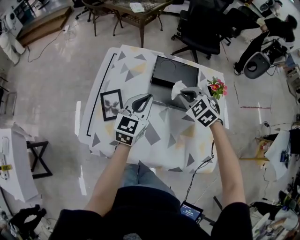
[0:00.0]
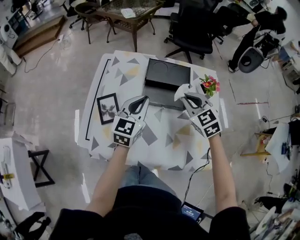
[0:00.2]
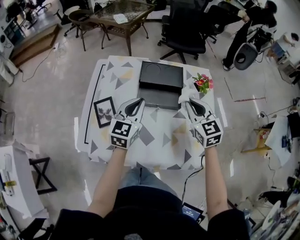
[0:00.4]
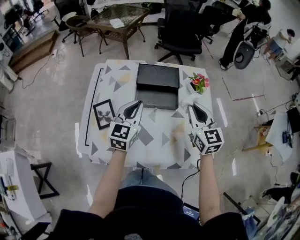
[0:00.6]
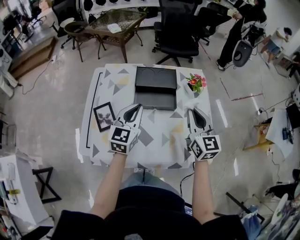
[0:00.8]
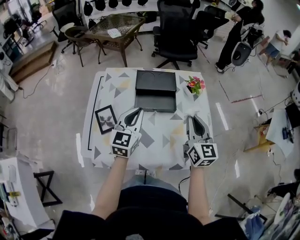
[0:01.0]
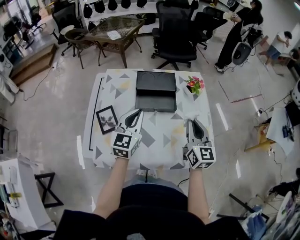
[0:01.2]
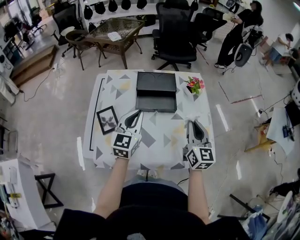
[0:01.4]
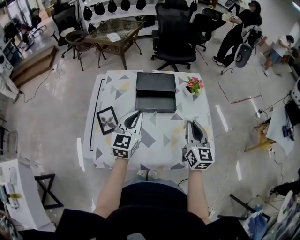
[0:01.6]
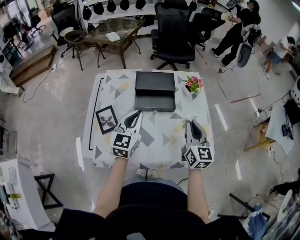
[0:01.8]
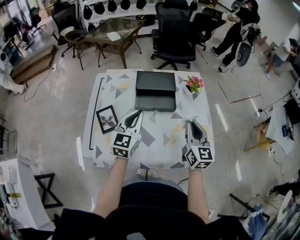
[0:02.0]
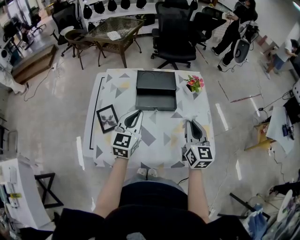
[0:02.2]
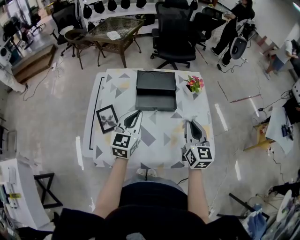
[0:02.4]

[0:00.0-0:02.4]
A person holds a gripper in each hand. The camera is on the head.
0:00.0 to 0:01.2: The right gripper travels backward, to the right and upward by approximately 20 cm, and tips its fingers upward by roughly 40 degrees. The left gripper goes about 5 cm backward.
0:01.2 to 0:02.4: The grippers stay close to where they were, moving slightly.

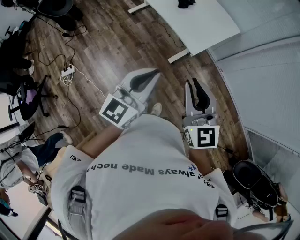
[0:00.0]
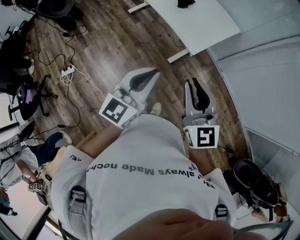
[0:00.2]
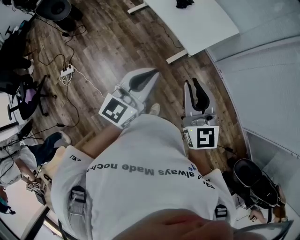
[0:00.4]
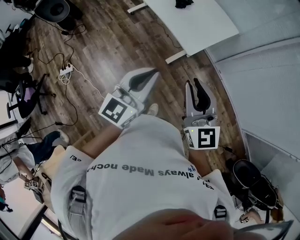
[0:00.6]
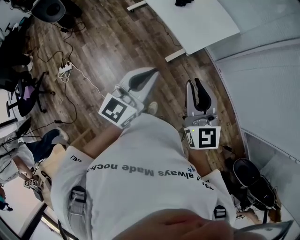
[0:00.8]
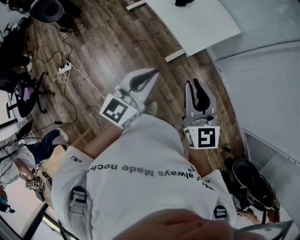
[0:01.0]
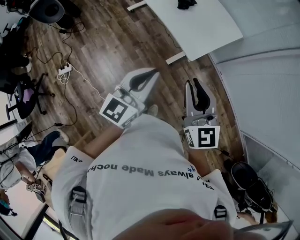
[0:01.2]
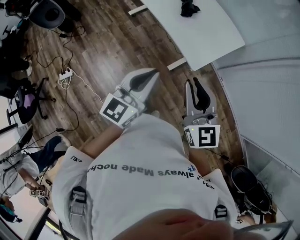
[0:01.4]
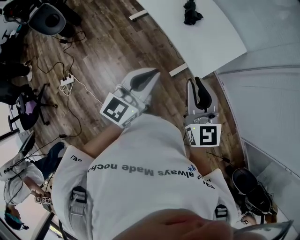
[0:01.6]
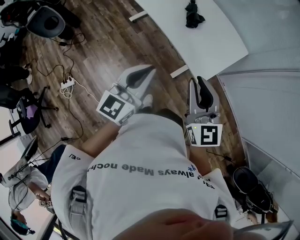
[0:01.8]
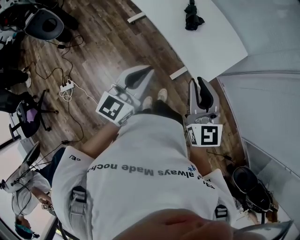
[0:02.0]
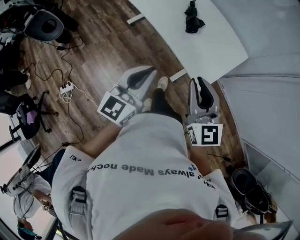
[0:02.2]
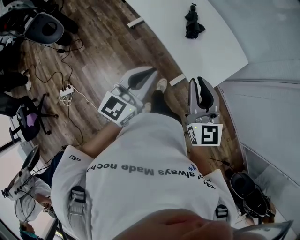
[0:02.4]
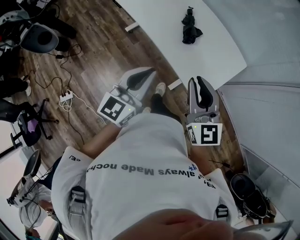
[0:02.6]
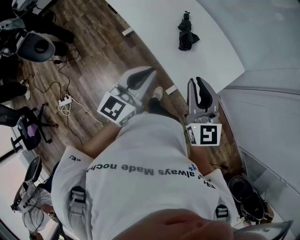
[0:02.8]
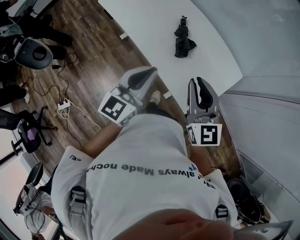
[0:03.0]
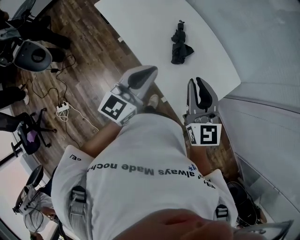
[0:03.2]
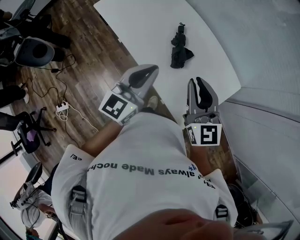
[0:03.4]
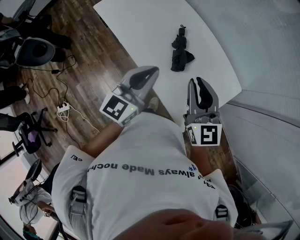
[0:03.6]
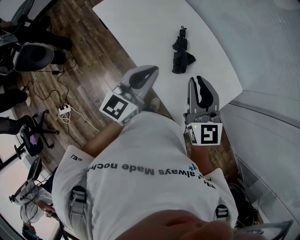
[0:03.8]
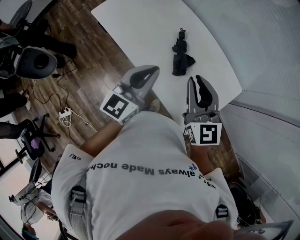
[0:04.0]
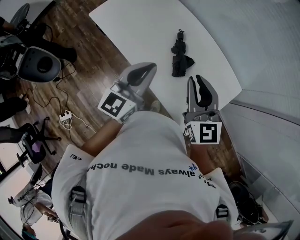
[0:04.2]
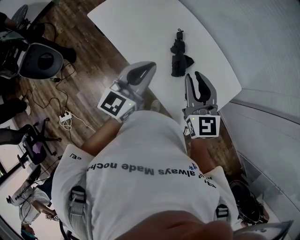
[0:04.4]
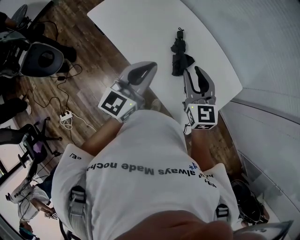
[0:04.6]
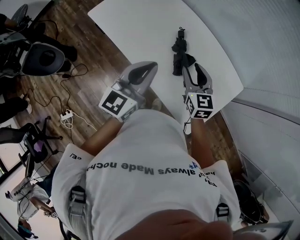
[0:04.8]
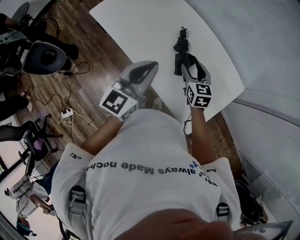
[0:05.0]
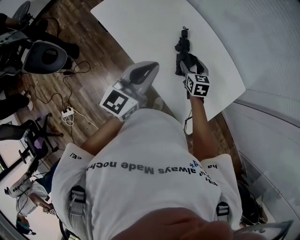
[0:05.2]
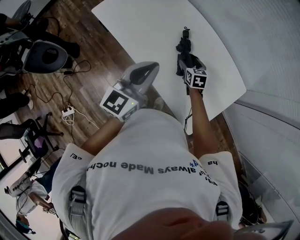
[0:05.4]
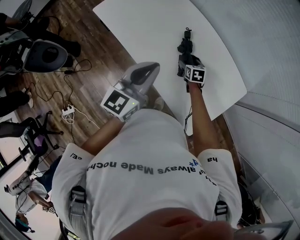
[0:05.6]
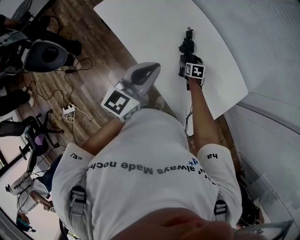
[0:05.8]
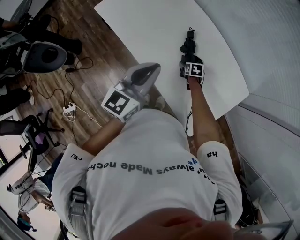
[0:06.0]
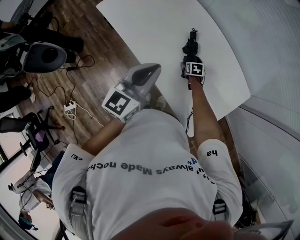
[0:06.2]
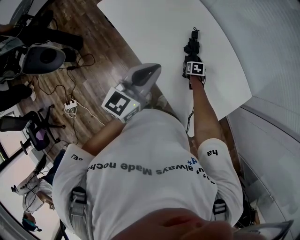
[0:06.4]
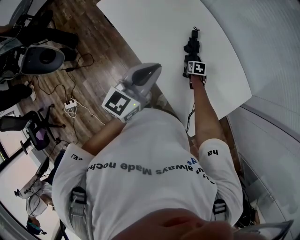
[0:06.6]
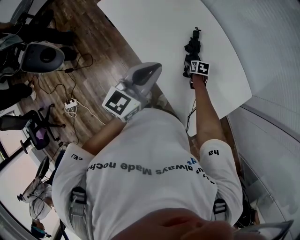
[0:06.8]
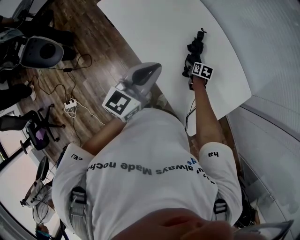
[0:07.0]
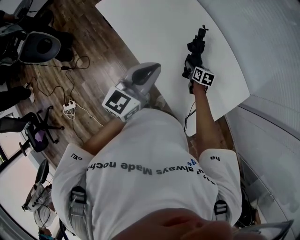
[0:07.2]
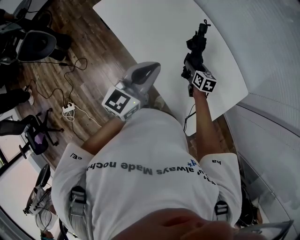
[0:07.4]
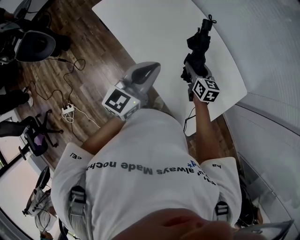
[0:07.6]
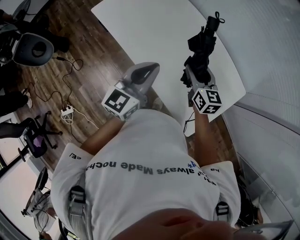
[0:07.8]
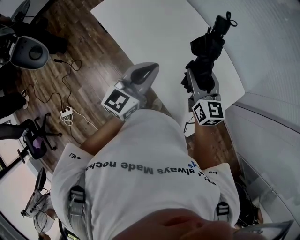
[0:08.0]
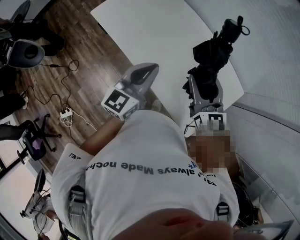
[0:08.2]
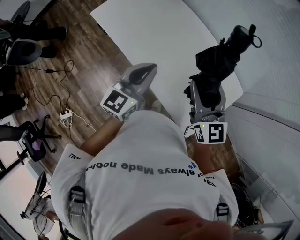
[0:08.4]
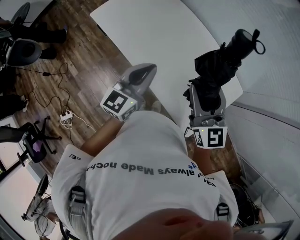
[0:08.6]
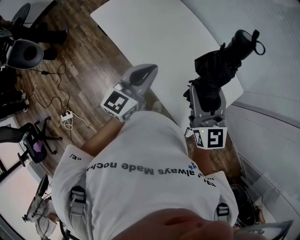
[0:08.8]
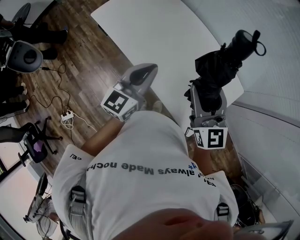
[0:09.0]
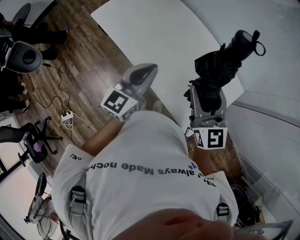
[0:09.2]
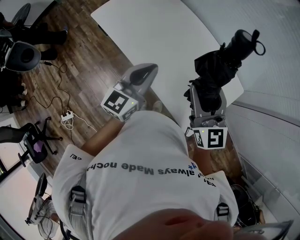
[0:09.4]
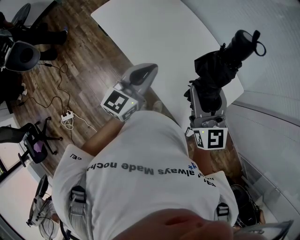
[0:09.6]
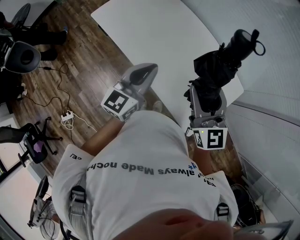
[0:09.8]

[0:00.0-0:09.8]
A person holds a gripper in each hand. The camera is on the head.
0:00.0 to 0:01.4: The two grippers go approximately 15 cm forward.
0:01.4 to 0:02.8: Both grippers move forward, roughly 30 cm.
0:02.8 to 0:04.2: The grippers both shift forward by roughly 25 cm.
0:04.2 to 0:05.6: The right gripper travels downward by about 35 cm, angles its fingers downward, by some 40 degrees, and opens up.
0:05.6 to 0:07.0: The right gripper heads downward, covering about 10 cm.
0:07.0 to 0:08.4: The right gripper goes approximately 40 cm upward, and points its fingers about 50 degrees further upward.
0:08.4 to 0:09.8: The right gripper shifts by some 5 cm.

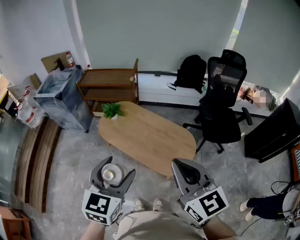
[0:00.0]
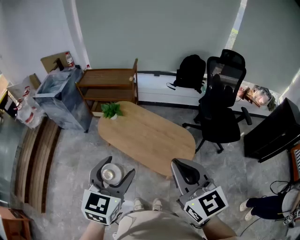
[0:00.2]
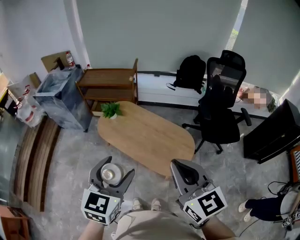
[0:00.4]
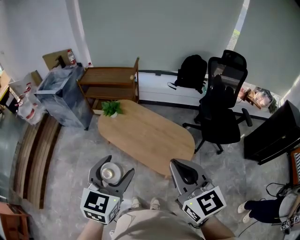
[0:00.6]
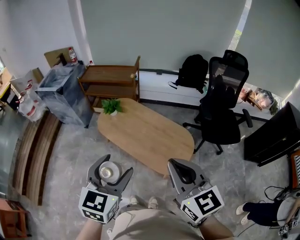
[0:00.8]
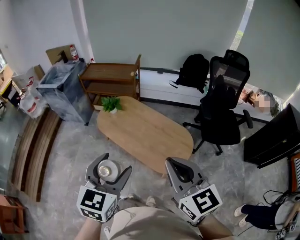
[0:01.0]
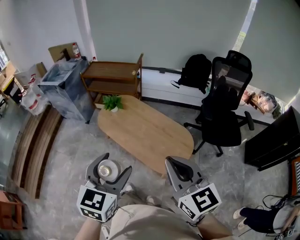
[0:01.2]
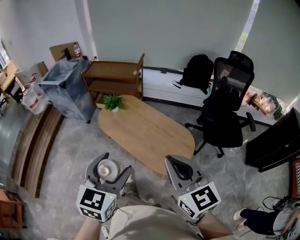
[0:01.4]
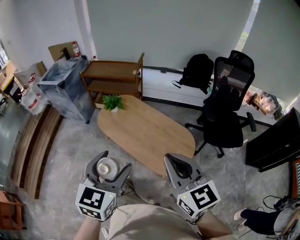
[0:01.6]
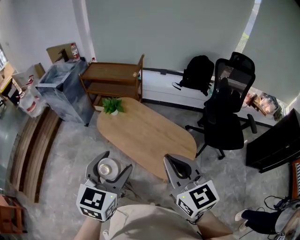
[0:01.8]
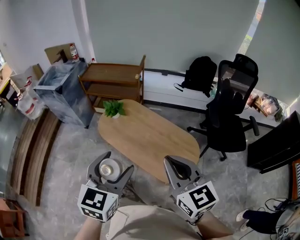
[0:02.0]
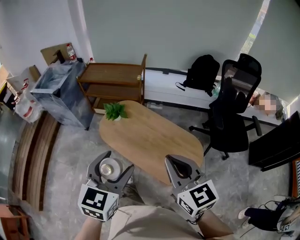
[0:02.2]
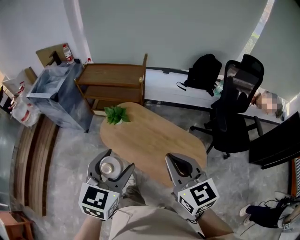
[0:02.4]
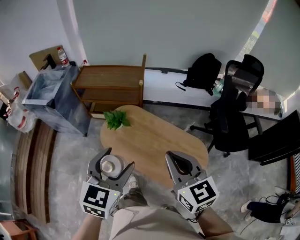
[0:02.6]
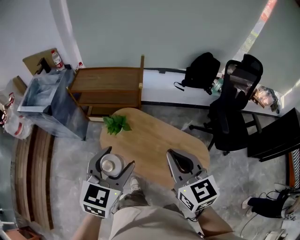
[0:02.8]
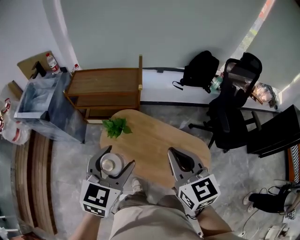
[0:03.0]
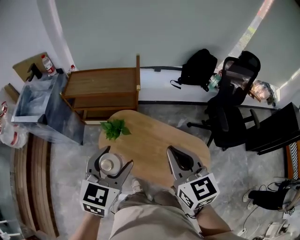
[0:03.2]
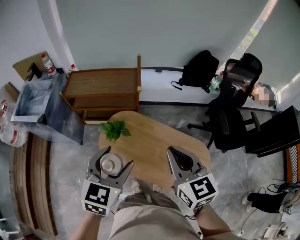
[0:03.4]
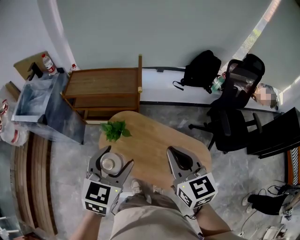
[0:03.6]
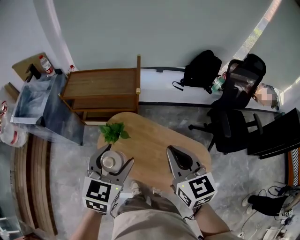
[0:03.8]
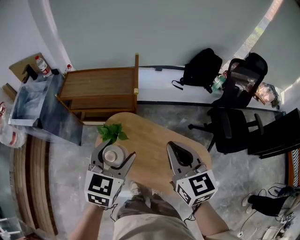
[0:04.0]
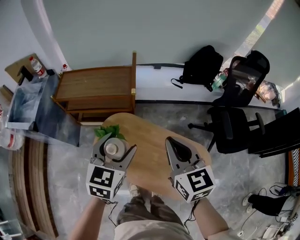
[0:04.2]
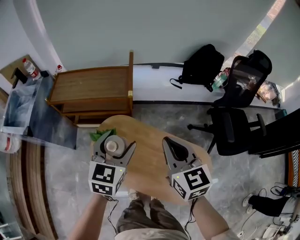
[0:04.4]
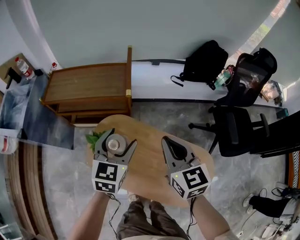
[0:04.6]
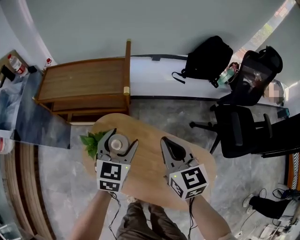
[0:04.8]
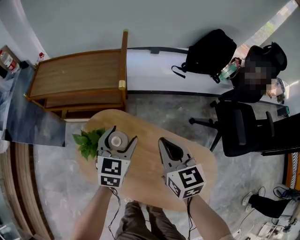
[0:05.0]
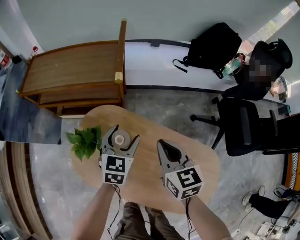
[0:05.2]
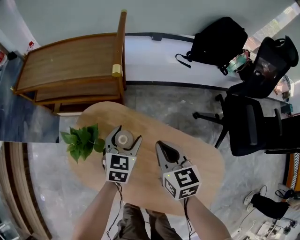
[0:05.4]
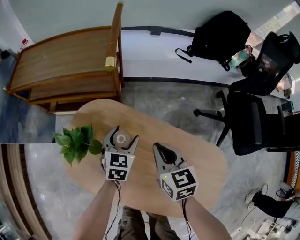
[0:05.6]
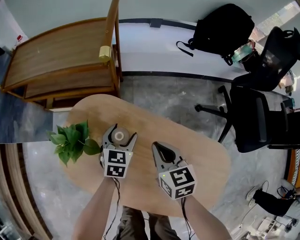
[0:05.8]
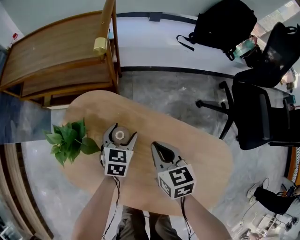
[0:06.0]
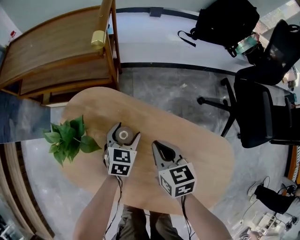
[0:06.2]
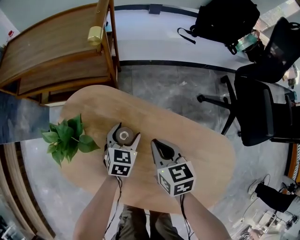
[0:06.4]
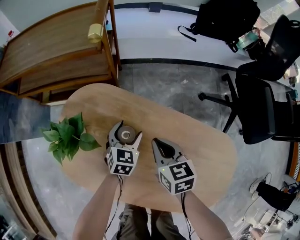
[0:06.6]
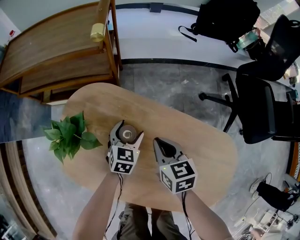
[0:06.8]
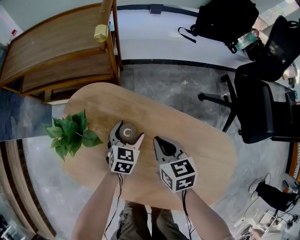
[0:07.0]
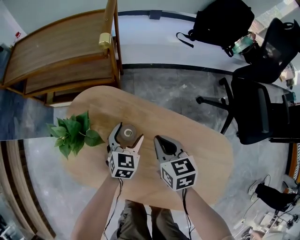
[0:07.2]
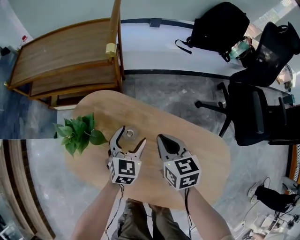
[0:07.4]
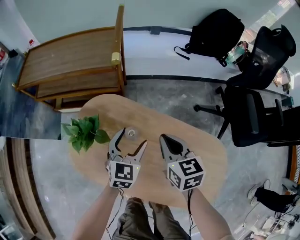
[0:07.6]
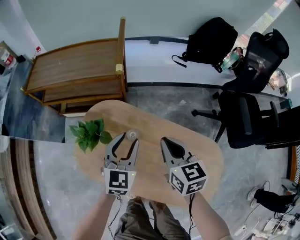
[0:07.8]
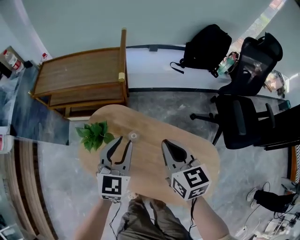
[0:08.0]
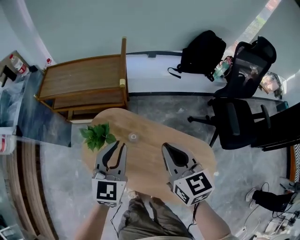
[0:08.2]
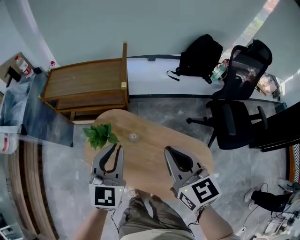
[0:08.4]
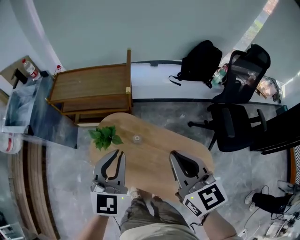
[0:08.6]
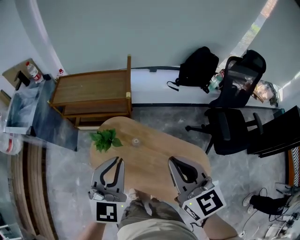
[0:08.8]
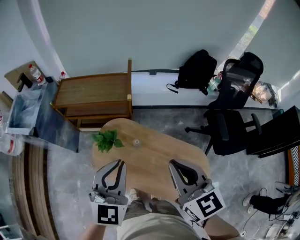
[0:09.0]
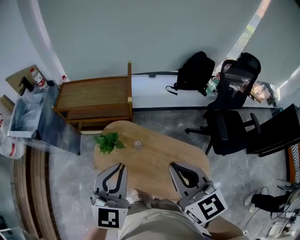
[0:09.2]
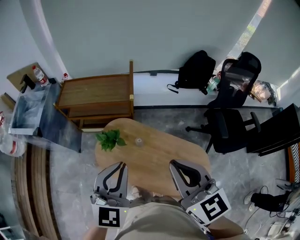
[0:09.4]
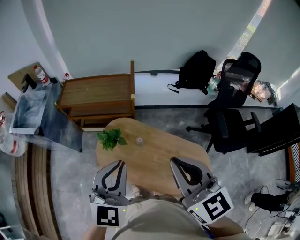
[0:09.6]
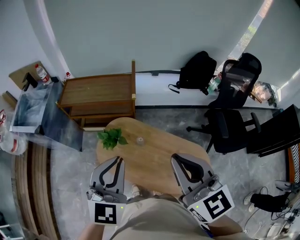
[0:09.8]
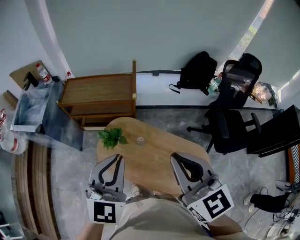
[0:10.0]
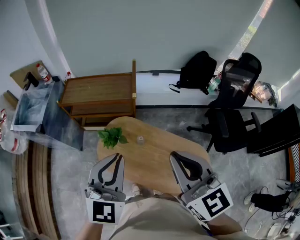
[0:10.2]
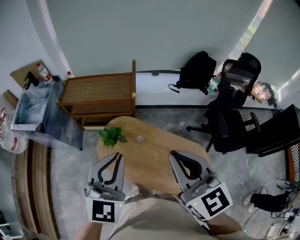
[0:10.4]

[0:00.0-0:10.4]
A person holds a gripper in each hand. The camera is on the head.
0:00.0 to 0:01.4: The right gripper moves about 5 cm; the left gripper shifts by roughly 5 cm.
0:01.4 to 0:03.0: The two grippers travel together, forward and to the left, some 40 cm.
0:03.0 to 0:04.4: The grippers both shift forward and downward by approximately 25 cm.
0:04.4 to 0:06.0: Both grippers travel together downward, approximately 50 cm. The right gripper turns by approximately 20 degrees.
0:06.0 to 0:07.4: The right gripper travels upward by some 5 cm; the left gripper heads upward, covering approximately 10 cm.
0:07.4 to 0:09.0: Both grippers travel together upward, some 50 cm. The left gripper rotates approximately 20 degrees, and closes. The right gripper swivels some 30 degrees.
0:09.0 to 0:10.4: The two grippers go roughly 5 cm upward.

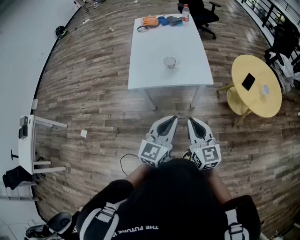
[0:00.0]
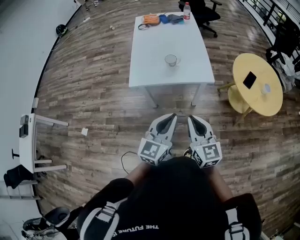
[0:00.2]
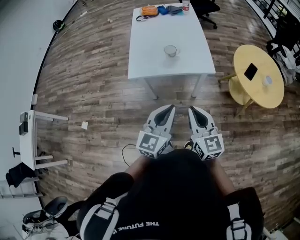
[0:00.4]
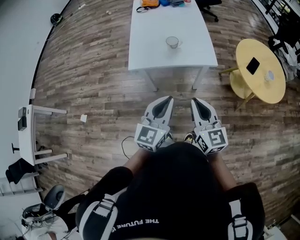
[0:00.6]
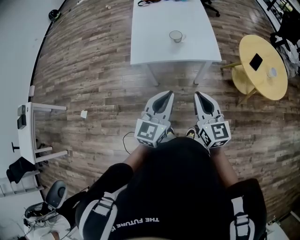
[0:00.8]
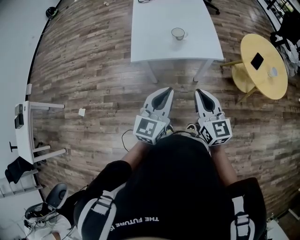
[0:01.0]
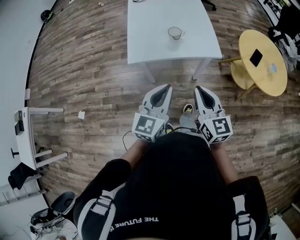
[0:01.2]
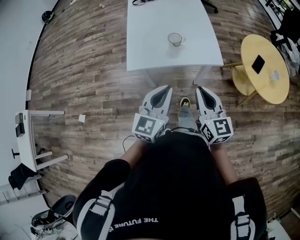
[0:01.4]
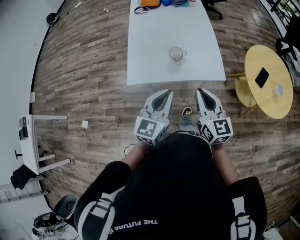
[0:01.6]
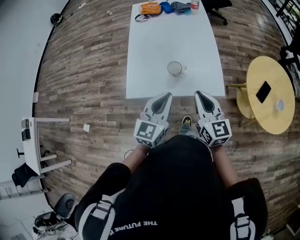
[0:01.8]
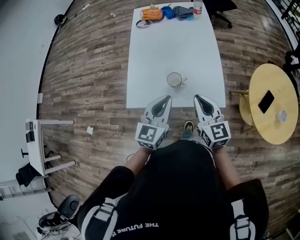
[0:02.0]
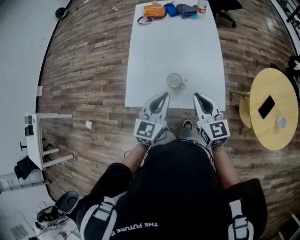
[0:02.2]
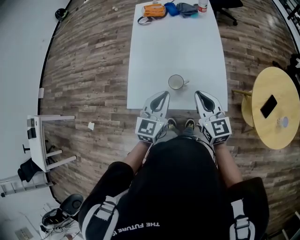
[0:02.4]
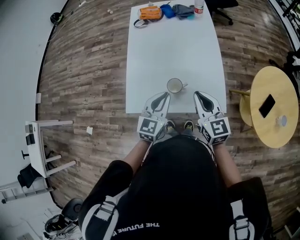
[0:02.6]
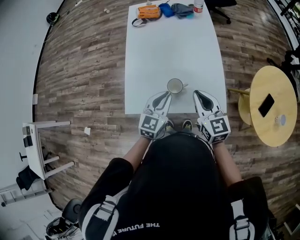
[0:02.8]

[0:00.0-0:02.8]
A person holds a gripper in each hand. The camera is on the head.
0:00.0 to 0:01.4: The right gripper travels forward by approximately 10 cm; the left gripper goes about 15 cm forward and to the left.
0:01.4 to 0:02.8: The two grippers go approximately 30 cm forward.
